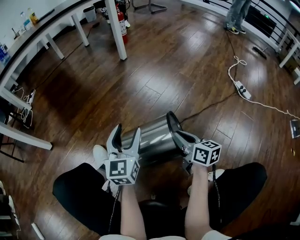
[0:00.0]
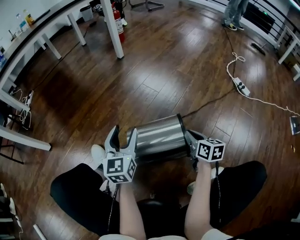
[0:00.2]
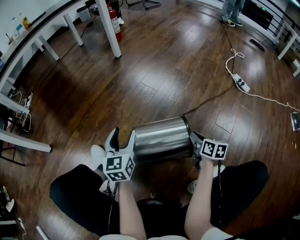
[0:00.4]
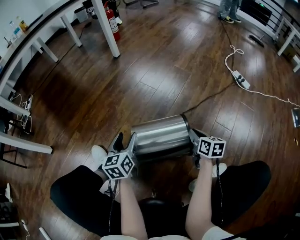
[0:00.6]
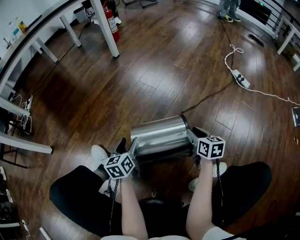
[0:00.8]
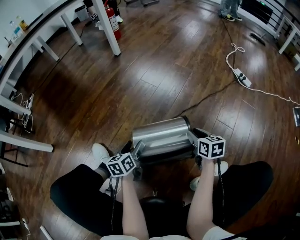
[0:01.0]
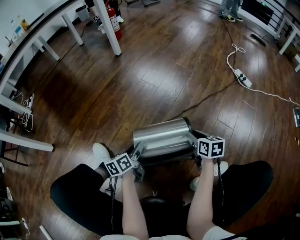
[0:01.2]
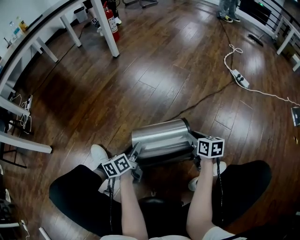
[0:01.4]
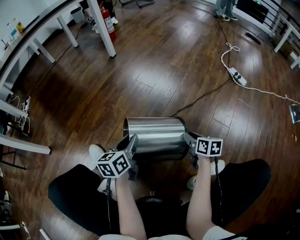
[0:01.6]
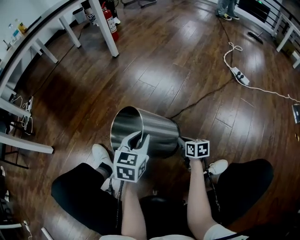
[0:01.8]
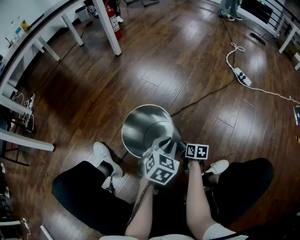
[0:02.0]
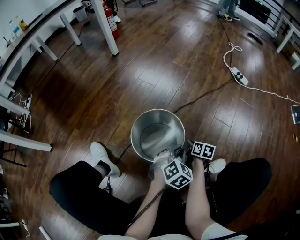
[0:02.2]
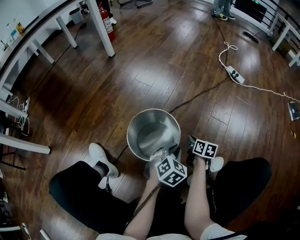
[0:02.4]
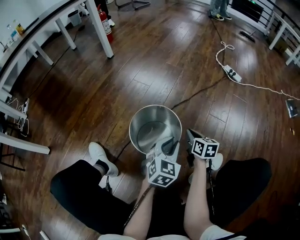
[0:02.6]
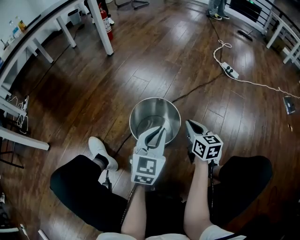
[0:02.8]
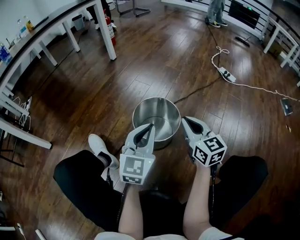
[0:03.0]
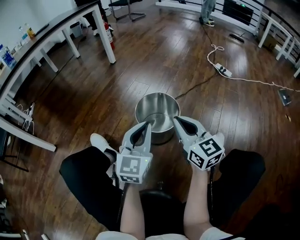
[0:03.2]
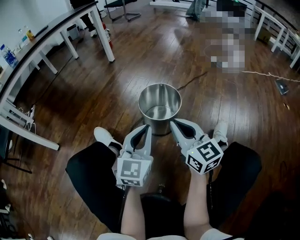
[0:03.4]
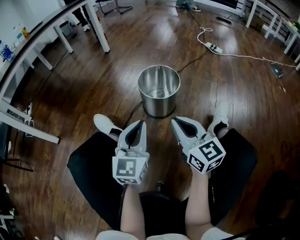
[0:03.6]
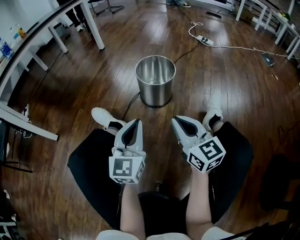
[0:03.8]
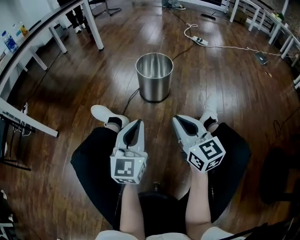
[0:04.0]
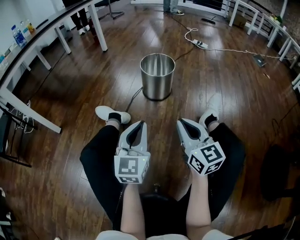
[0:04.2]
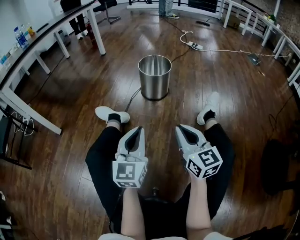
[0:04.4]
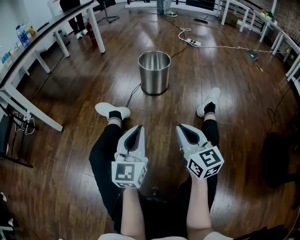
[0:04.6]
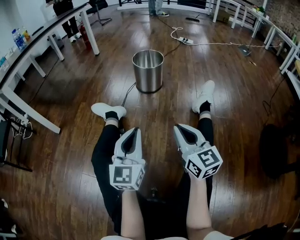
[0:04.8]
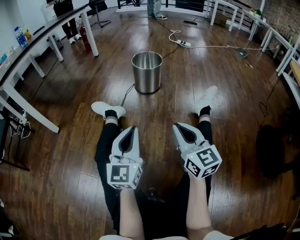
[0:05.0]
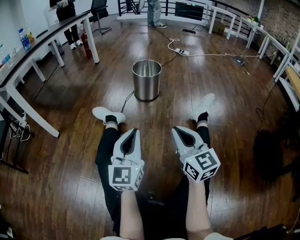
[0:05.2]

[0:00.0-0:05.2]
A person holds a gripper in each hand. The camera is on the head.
0:00.0 to 0:01.8: The right gripper heads downward, covering approximately 20 cm, and turns by about 30 degrees; the left gripper is displaced to the right and downward by about 10 cm, changes its angle by roughly 30 degrees, and closes its fingers.
0:01.8 to 0:03.4: The right gripper moves upward and backward, about 40 cm, and angles its fingers upward, by roughly 40 degrees. The left gripper moves backward and upward, roughly 25 cm, and changes its angle by roughly 30 degrees.
0:03.4 to 0:05.2: The two grippers travel together, backward, about 40 cm. The right gripper swivels some 20 degrees.

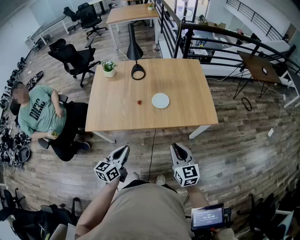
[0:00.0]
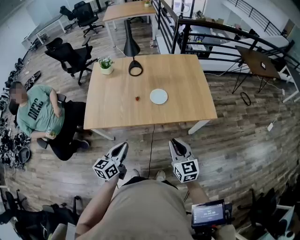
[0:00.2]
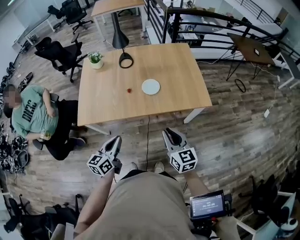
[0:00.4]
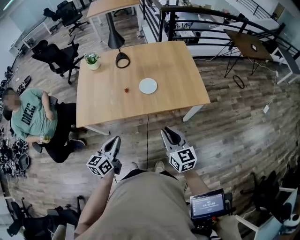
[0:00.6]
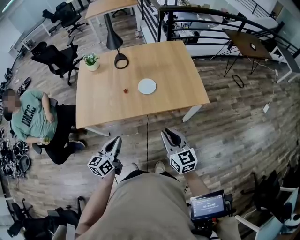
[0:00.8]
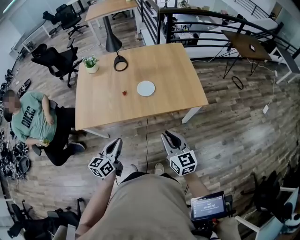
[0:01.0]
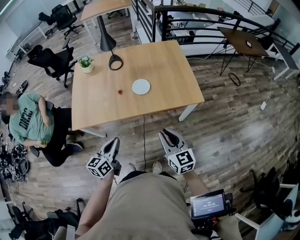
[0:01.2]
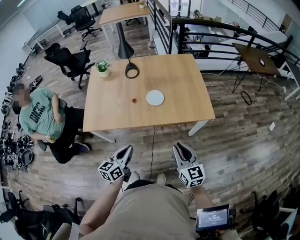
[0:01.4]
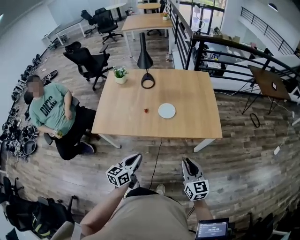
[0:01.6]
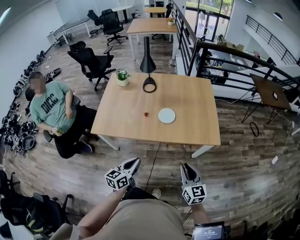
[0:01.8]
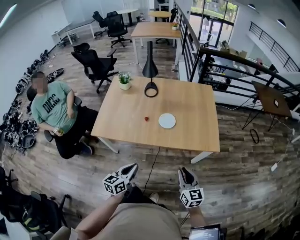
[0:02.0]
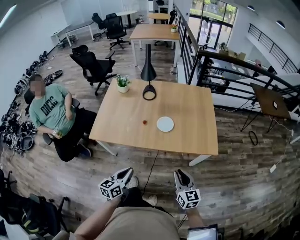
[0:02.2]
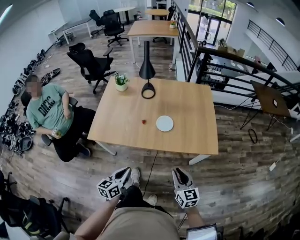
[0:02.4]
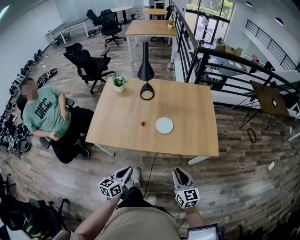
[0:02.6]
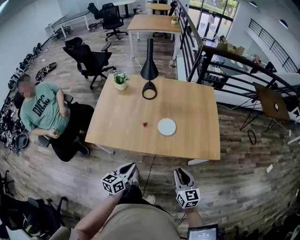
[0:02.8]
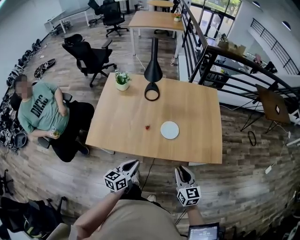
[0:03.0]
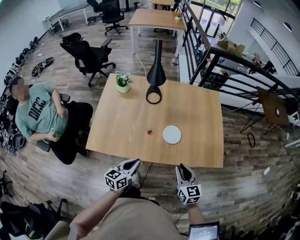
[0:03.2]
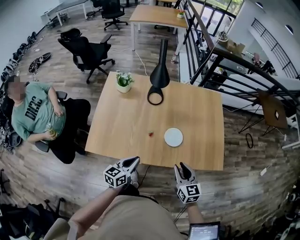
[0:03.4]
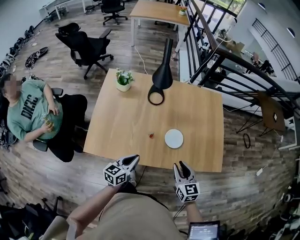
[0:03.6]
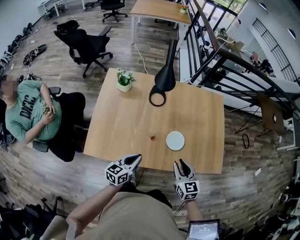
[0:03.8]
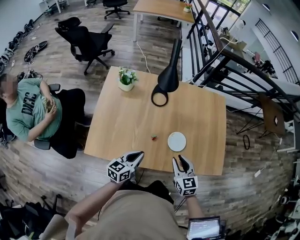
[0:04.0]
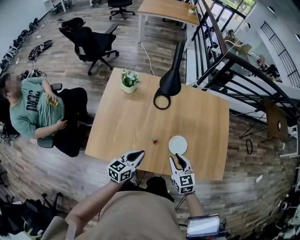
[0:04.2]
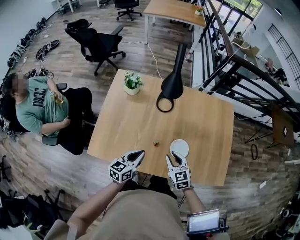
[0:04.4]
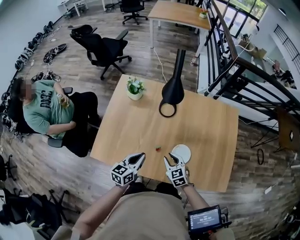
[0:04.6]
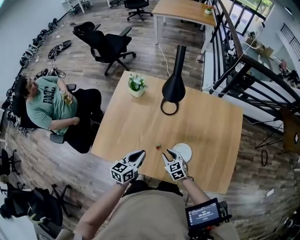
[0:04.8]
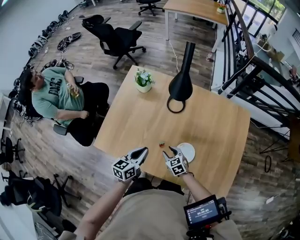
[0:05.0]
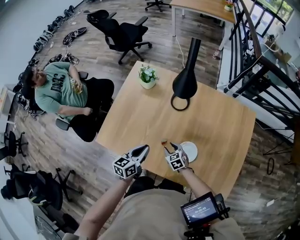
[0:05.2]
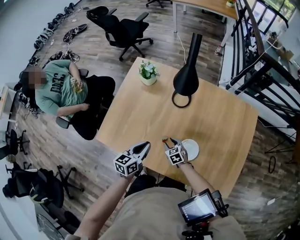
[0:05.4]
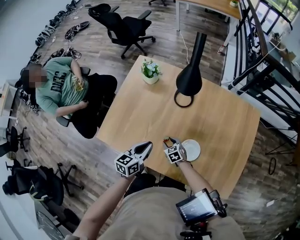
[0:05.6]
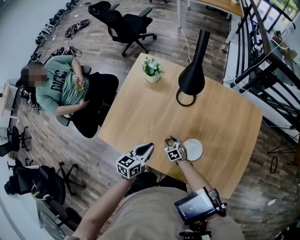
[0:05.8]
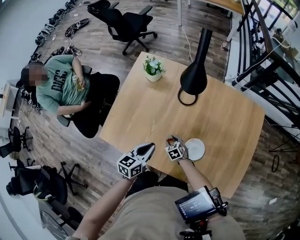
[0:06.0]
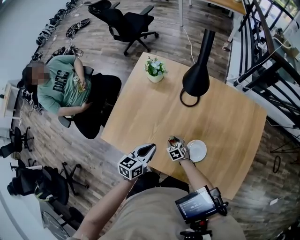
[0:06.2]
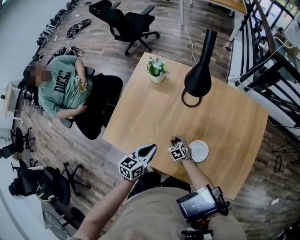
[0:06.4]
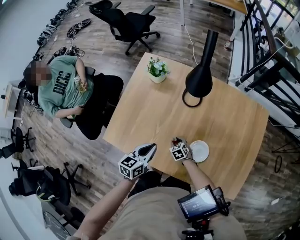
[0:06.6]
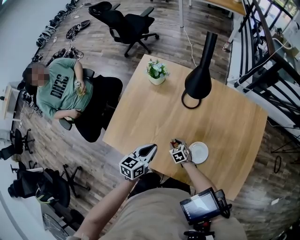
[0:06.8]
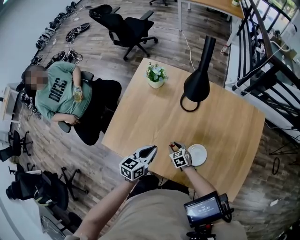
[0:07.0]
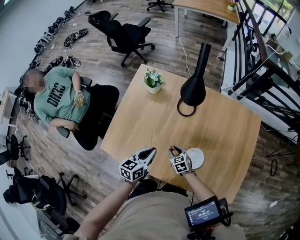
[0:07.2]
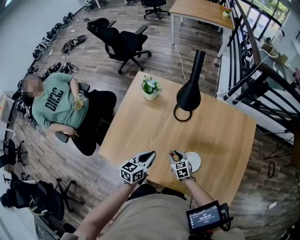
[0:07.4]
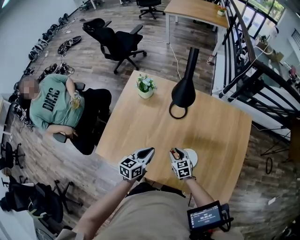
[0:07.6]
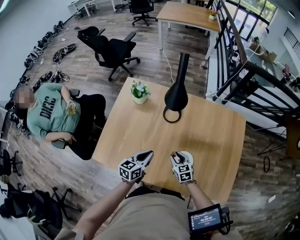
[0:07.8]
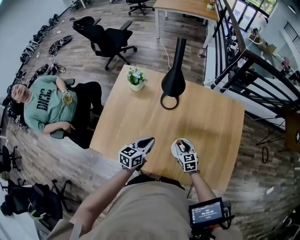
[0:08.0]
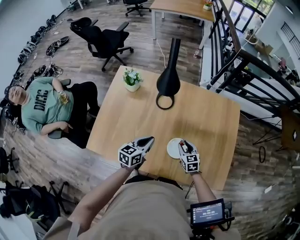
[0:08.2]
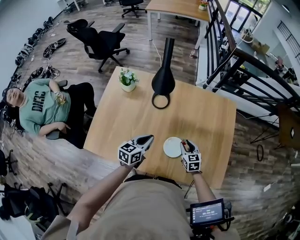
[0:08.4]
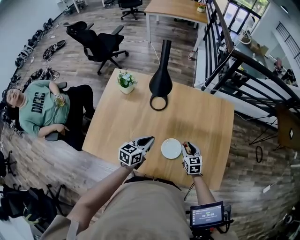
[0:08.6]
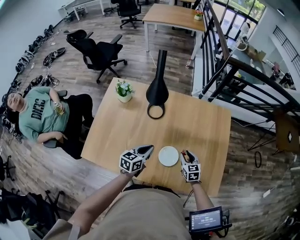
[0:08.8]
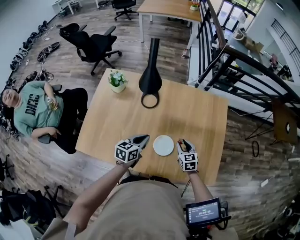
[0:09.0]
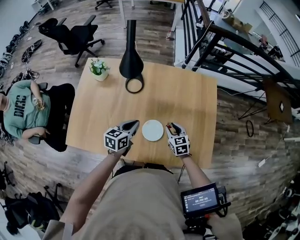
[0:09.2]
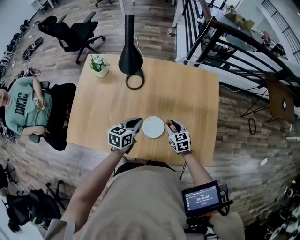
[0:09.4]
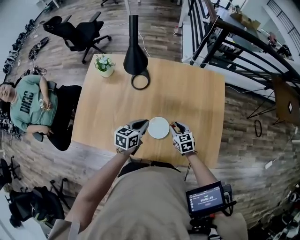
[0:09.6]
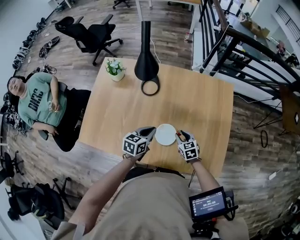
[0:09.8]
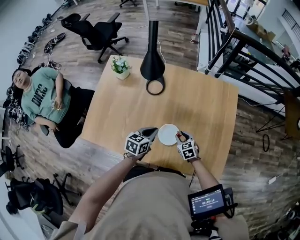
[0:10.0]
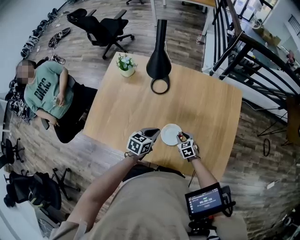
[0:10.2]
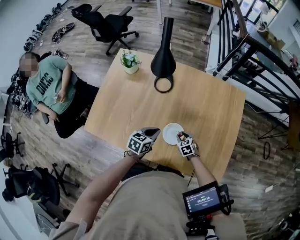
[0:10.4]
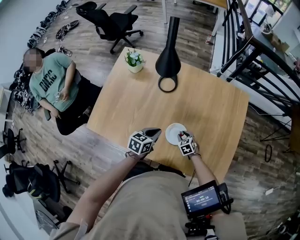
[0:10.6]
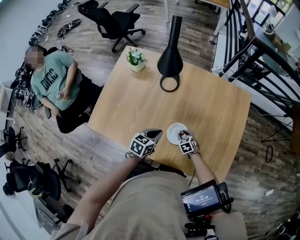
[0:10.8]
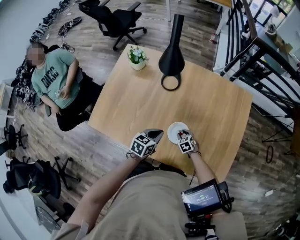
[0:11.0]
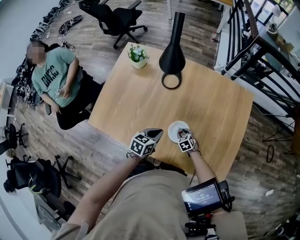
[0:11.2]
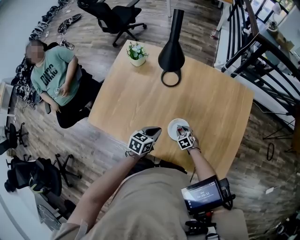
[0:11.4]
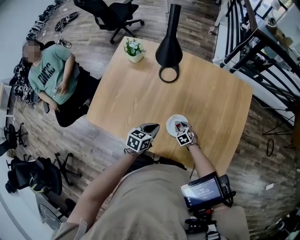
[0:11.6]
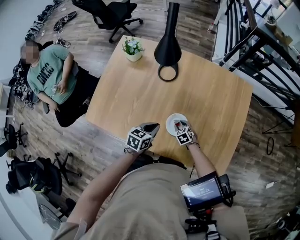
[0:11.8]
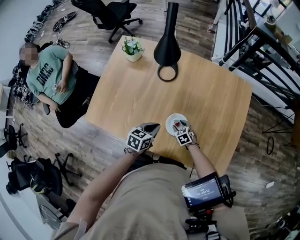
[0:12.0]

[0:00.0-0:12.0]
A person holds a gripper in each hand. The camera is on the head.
0:00.0 to 0:01.6: The two grippers go approximately 10 cm to the right.
0:01.6 to 0:03.0: The two grippers go approximately 15 cm forward and to the left.
0:03.0 to 0:04.4: Both grippers travel together forward and to the left, approximately 25 cm. The right gripper changes its angle by some 20 degrees.
0:04.4 to 0:06.0: The right gripper heads downward, covering about 25 cm, and swivels approximately 30 degrees. Meanwhile the left gripper changes place by some 5 cm.
0:06.0 to 0:07.6: The right gripper travels upward and to the right by approximately 15 cm, and changes its angle by roughly 20 degrees.
0:07.6 to 0:09.0: The left gripper heads to the right, covering approximately 15 cm. Meanwhile the right gripper goes roughly 20 cm to the right.
0:09.0 to 0:10.4: The left gripper goes some 5 cm downward; the right gripper is displaced downward by roughly 15 cm, and changes its angle by about 30 degrees.
0:10.4 to 0:12.0: The right gripper shifts by approximately 5 cm.

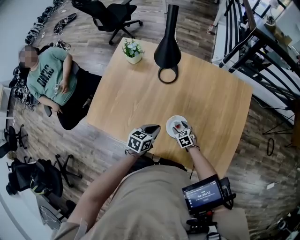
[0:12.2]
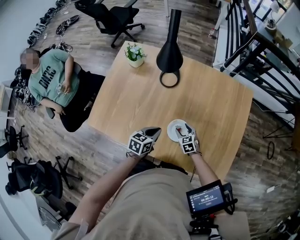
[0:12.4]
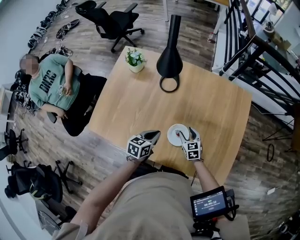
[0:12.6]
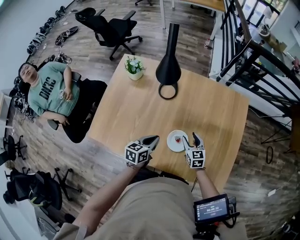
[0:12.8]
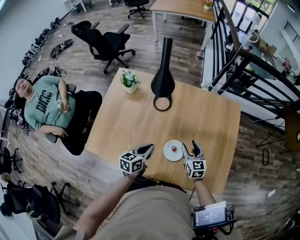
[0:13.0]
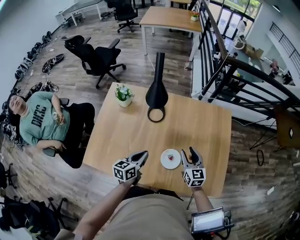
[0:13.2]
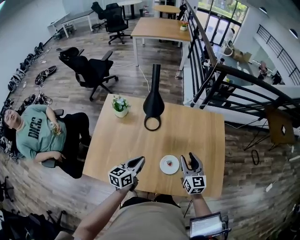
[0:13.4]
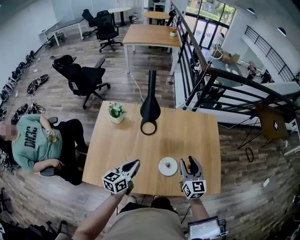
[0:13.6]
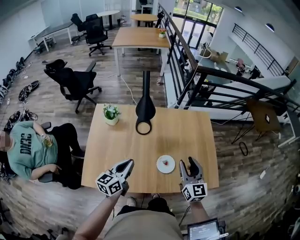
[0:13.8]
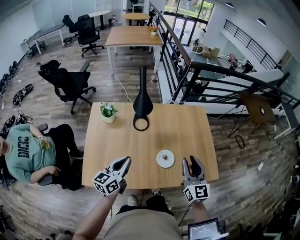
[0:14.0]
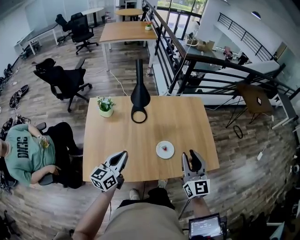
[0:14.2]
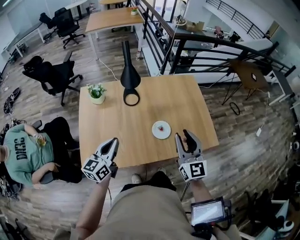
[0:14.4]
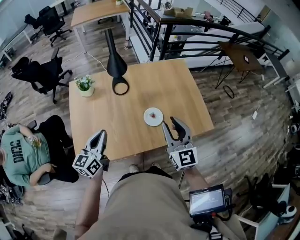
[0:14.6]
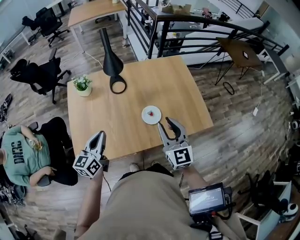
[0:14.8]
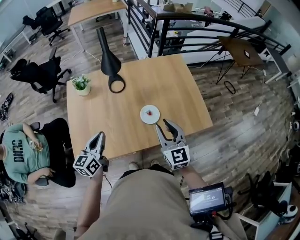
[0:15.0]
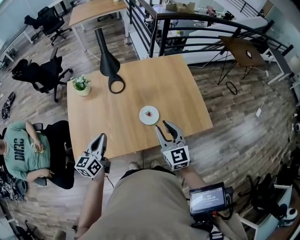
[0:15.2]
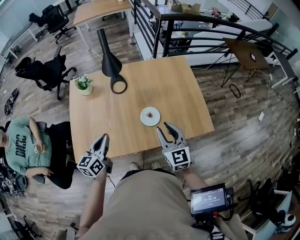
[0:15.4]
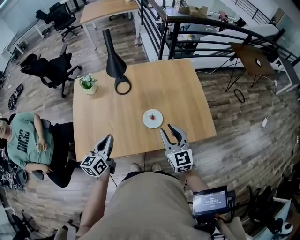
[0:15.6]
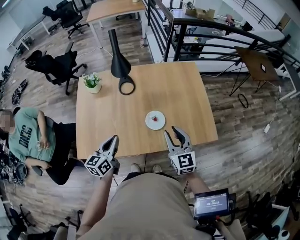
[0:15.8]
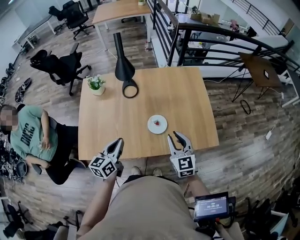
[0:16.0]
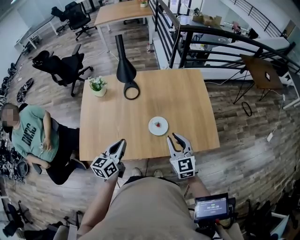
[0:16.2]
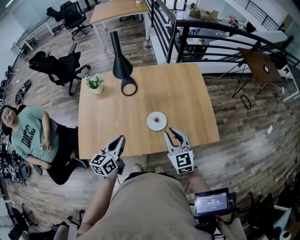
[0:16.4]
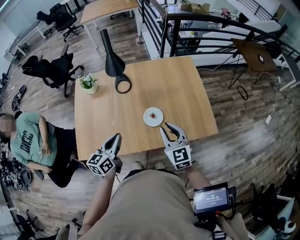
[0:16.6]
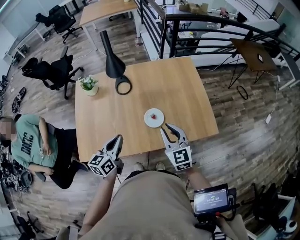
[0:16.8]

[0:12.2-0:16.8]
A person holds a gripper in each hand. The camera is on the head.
0:12.2 to 0:13.8: The left gripper heads upward and to the left, covering about 25 cm, and angles its fingers upward, by about 30 degrees, while the right gripper is displaced upward by about 40 cm, and tips its fingers upward by some 50 degrees.
0:13.8 to 0:15.2: The two grippers go approximately 10 cm backward.
0:15.2 to 0:16.8: The left gripper travels to the right by roughly 10 cm.

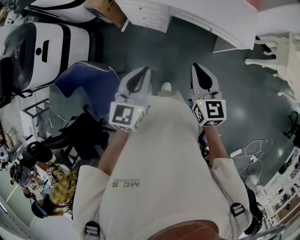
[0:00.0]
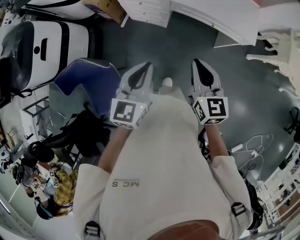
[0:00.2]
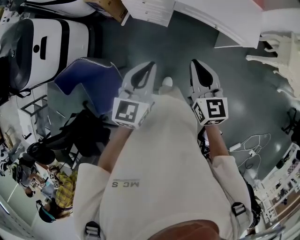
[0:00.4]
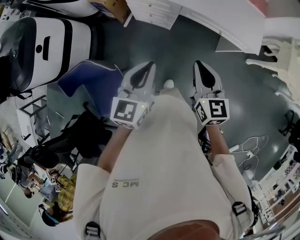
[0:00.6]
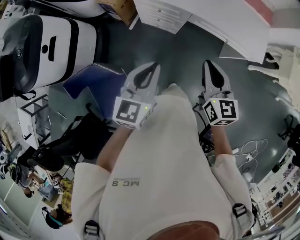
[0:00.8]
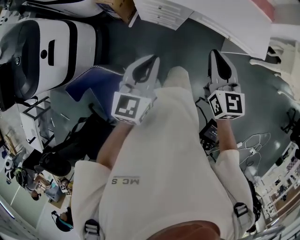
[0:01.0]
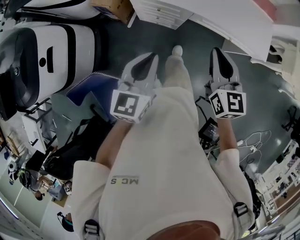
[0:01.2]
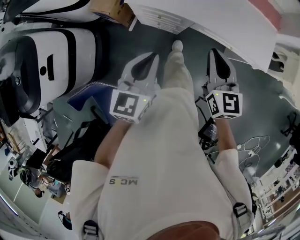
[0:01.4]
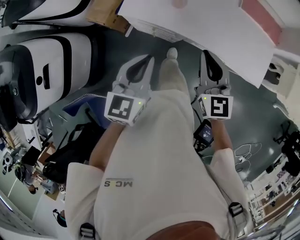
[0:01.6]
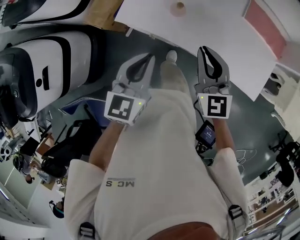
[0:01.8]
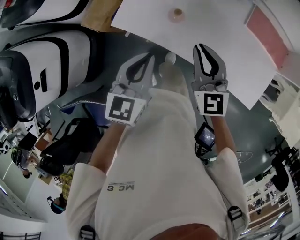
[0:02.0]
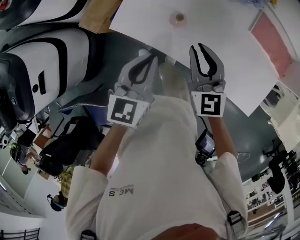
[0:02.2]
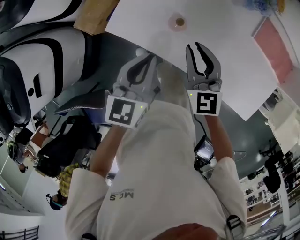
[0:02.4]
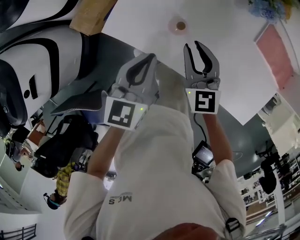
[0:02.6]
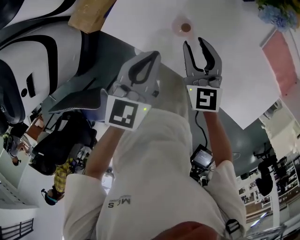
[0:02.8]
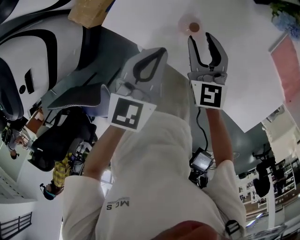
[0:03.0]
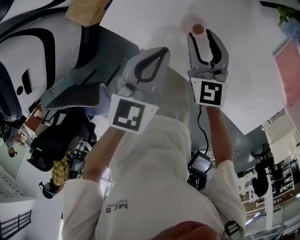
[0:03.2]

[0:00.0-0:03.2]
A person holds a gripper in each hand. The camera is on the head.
0:00.0 to 0:01.6: The two grippers go approximately 15 cm backward and upward.
0:01.6 to 0:03.2: The right gripper heads forward, covering approximately 15 cm, and opens. Meanwhile the left gripper shifts about 15 cm forward, to the right and upward.
